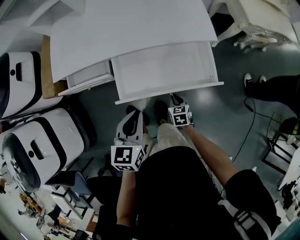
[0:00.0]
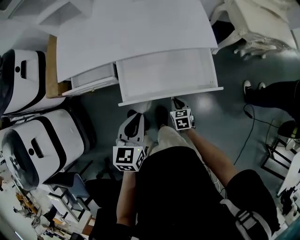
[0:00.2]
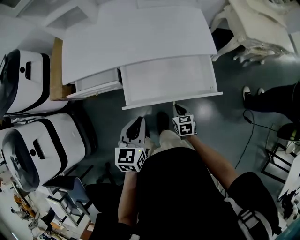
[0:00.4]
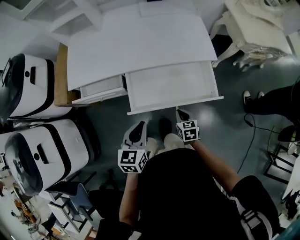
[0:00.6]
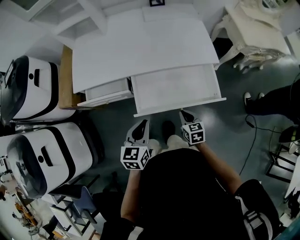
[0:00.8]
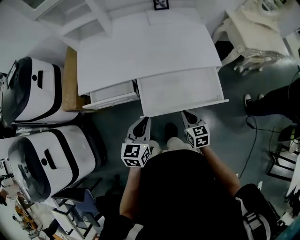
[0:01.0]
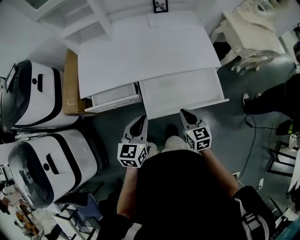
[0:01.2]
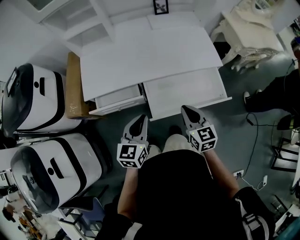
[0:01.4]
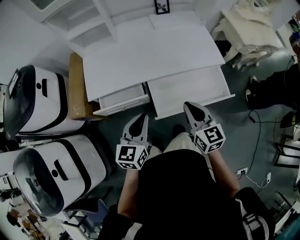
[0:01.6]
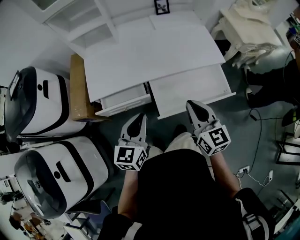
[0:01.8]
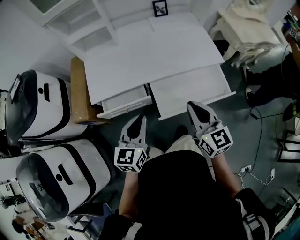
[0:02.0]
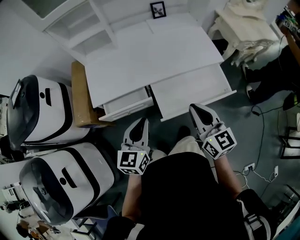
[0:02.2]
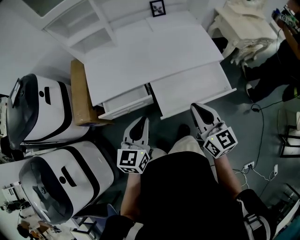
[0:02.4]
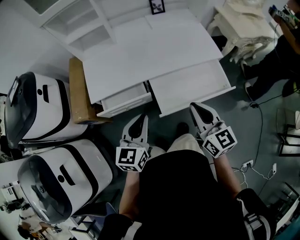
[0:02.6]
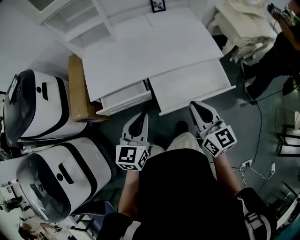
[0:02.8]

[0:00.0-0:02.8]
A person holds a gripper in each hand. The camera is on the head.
0:00.0 to 0:01.4: The left gripper travels to the left and upward by some 20 cm, while the right gripper shifts approximately 35 cm upward and to the left, and turns by about 30 degrees.
0:01.4 to 0:02.8: The right gripper is displaced upward by about 10 cm; the left gripper travels to the left by about 5 cm.
